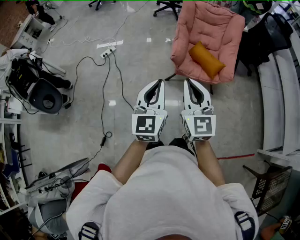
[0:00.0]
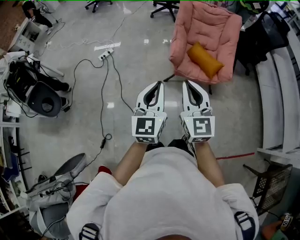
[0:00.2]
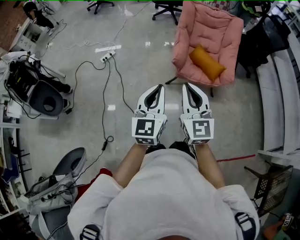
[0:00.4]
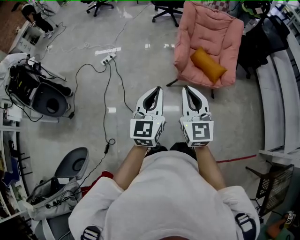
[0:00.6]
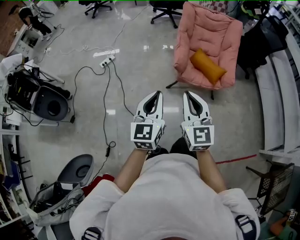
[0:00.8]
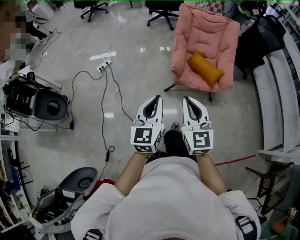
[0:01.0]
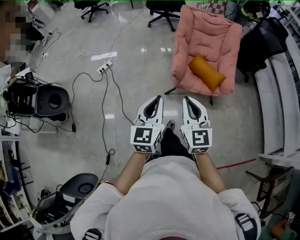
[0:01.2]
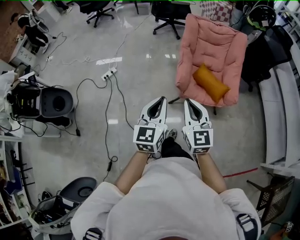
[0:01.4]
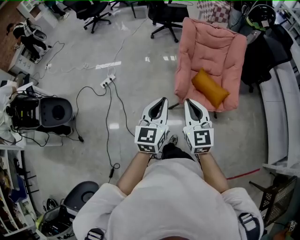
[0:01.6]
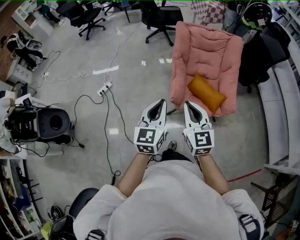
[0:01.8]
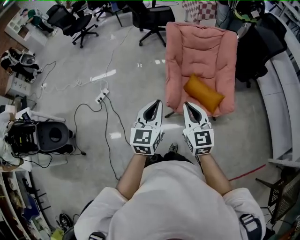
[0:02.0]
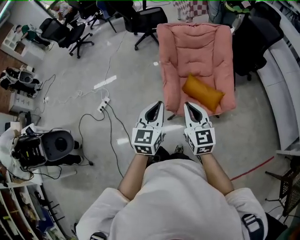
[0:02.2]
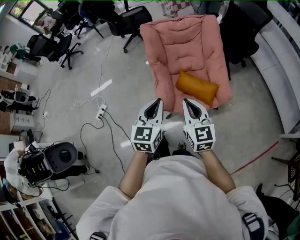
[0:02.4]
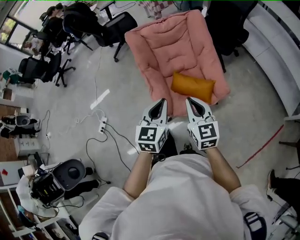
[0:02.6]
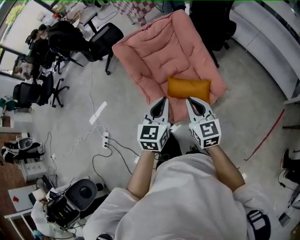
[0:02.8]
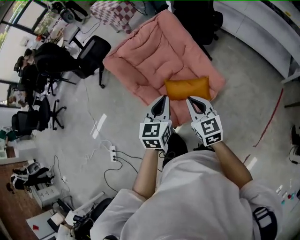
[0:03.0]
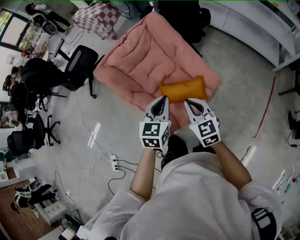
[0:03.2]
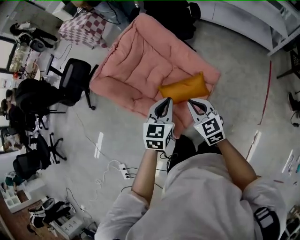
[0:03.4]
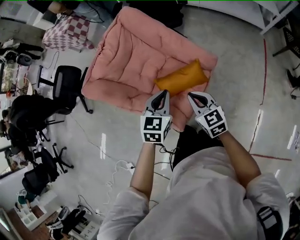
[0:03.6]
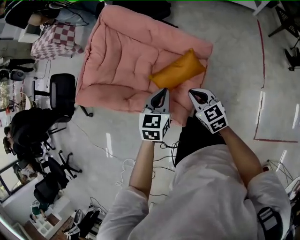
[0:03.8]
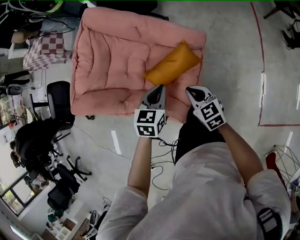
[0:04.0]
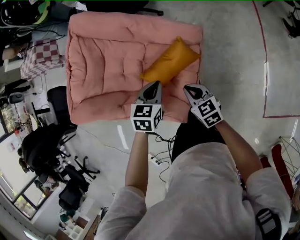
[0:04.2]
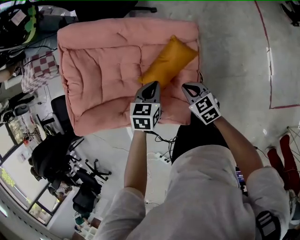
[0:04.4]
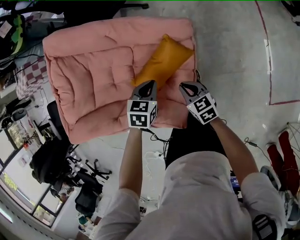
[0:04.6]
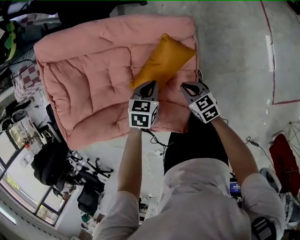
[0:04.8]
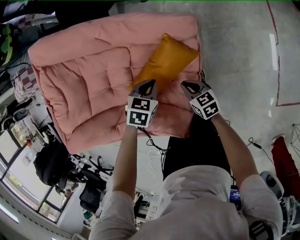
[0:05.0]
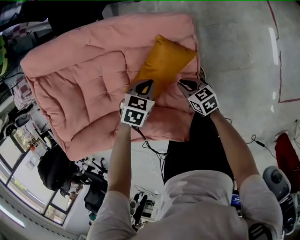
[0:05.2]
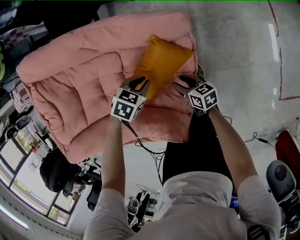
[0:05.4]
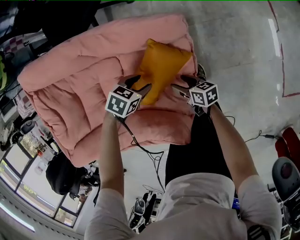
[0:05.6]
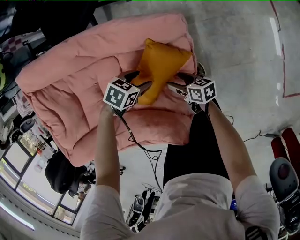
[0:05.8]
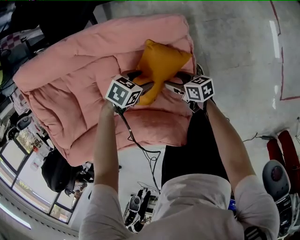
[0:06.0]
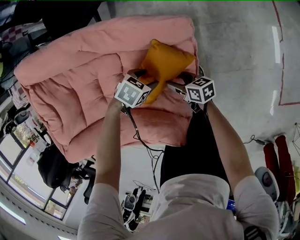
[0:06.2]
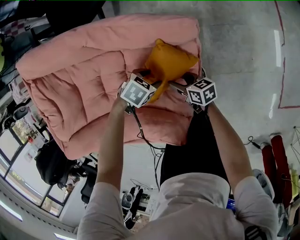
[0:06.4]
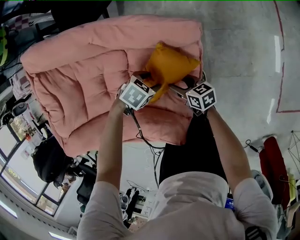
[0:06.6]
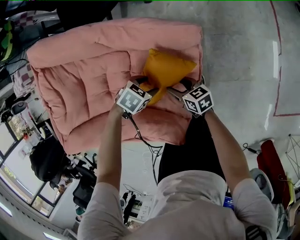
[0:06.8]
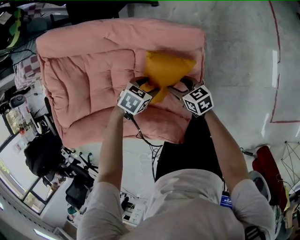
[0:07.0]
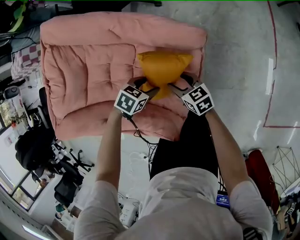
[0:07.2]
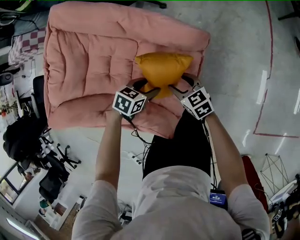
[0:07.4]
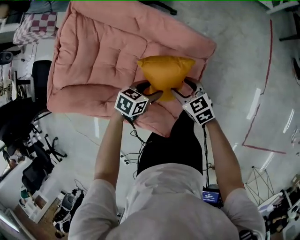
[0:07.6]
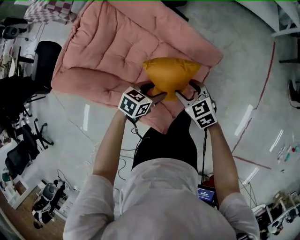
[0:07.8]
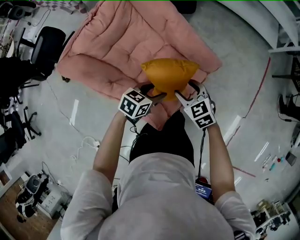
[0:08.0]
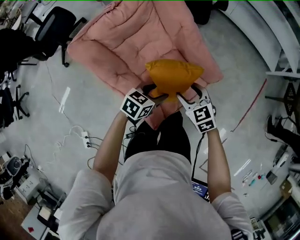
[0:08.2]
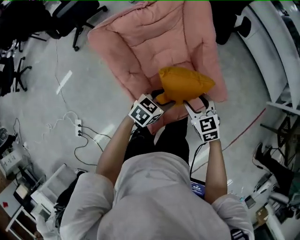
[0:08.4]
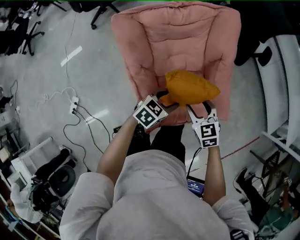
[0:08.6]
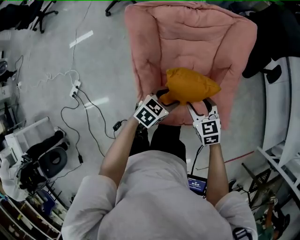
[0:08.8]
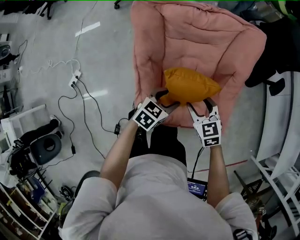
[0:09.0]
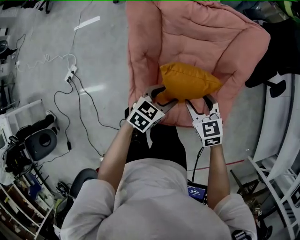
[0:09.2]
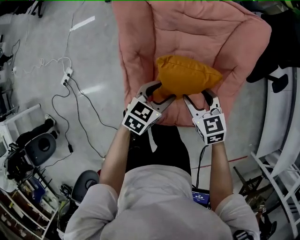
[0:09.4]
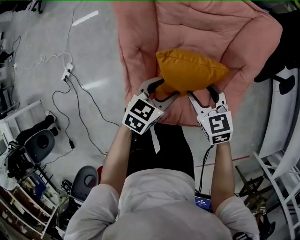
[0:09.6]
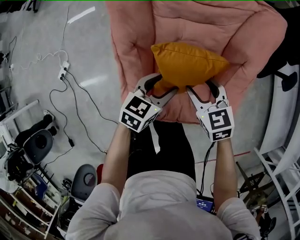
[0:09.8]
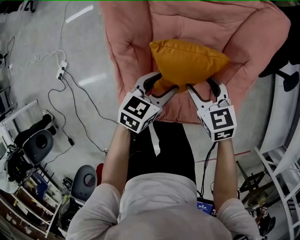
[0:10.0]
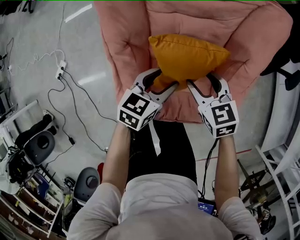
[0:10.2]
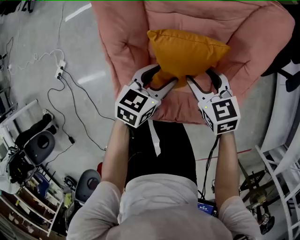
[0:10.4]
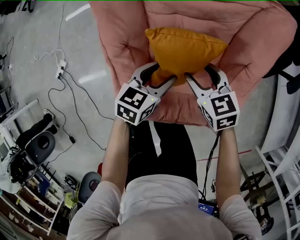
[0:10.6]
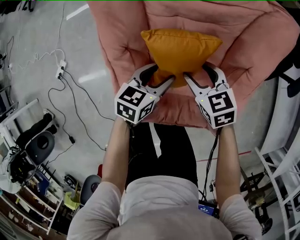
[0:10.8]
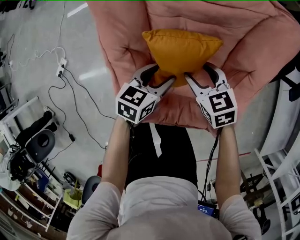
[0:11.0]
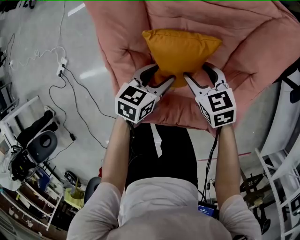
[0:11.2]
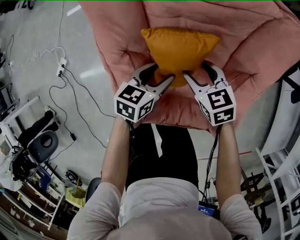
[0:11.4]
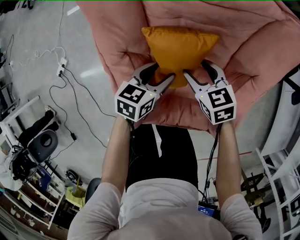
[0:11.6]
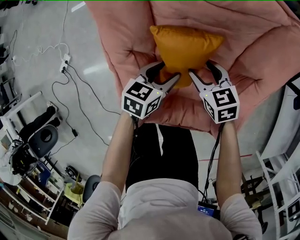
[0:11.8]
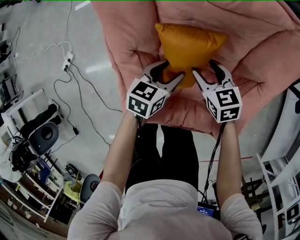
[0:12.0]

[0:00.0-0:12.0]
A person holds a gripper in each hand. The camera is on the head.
0.0 to 1.6 s: The two grippers go some 20 cm forward.
1.6 to 3.0 s: The right gripper changes place by about 30 cm, and swivels roughly 40 degrees. The left gripper shifts by approximately 35 cm, and turns by some 40 degrees.
3.0 to 4.4 s: The grippers both shift downward by some 25 cm. The right gripper swivels approximately 40 degrees; the left gripper angles its fingers downward, by about 30 degrees.
4.4 to 6.0 s: Both grippers travel together downward, roughly 20 cm. The right gripper rotates around the line of its fingers by approximately 40 degrees, clockwise from behind, and opens its fingers. Meanwhile the left gripper changes its angle by about 50 degrees, and opens.
6.0 to 7.6 s: The two grippers go about 15 cm upward. The right gripper twists some 60 degrees counterclockwise, seen from behind; the left gripper rotates approximately 40 degrees.
7.6 to 9.0 s: The right gripper changes place by some 20 cm, and changes its angle by some 60 degrees, while the left gripper moves about 15 cm, and rotates approximately 60 degrees.
9.0 to 10.4 s: The two grippers go about 10 cm downward and forward.
10.4 to 12.0 s: The left gripper travels downward by some 5 cm. Meanwhile the right gripper goes some 10 cm downward and forward.

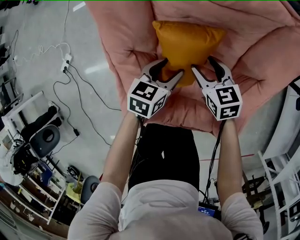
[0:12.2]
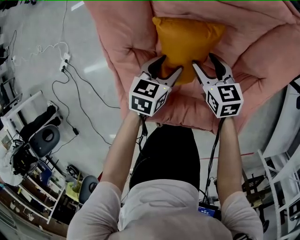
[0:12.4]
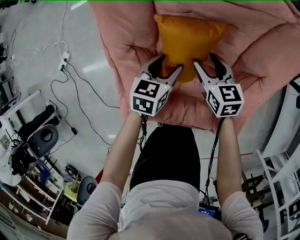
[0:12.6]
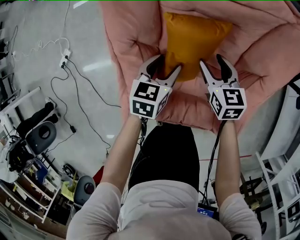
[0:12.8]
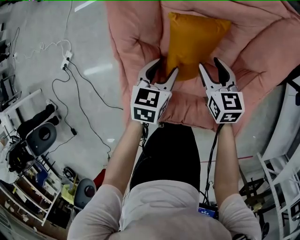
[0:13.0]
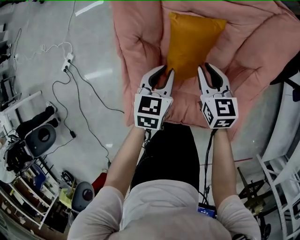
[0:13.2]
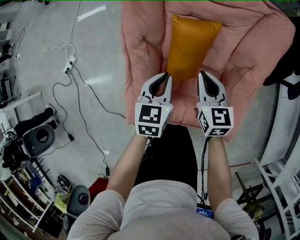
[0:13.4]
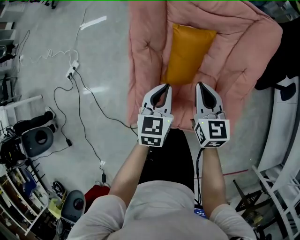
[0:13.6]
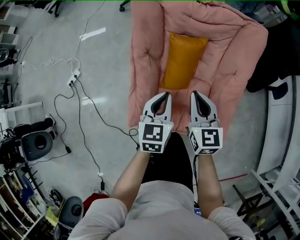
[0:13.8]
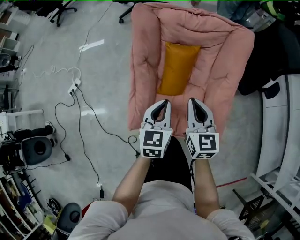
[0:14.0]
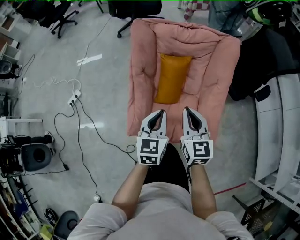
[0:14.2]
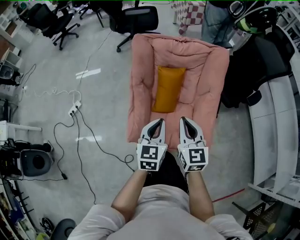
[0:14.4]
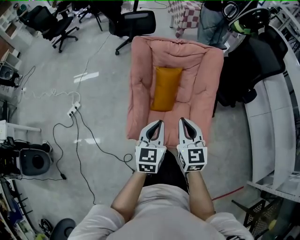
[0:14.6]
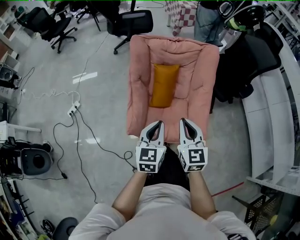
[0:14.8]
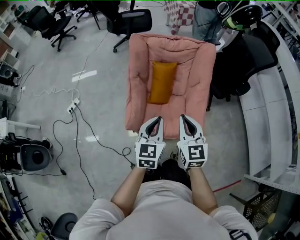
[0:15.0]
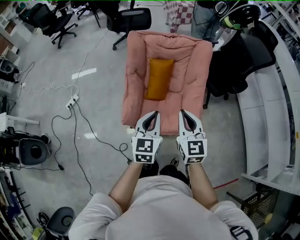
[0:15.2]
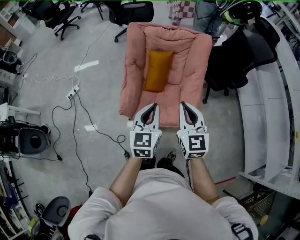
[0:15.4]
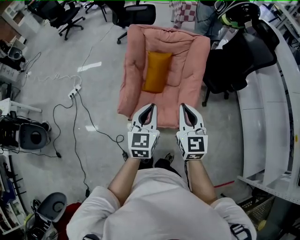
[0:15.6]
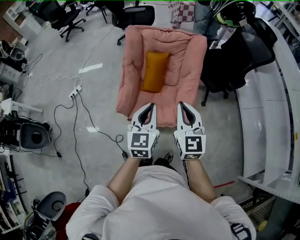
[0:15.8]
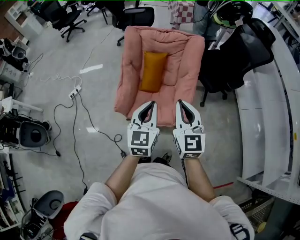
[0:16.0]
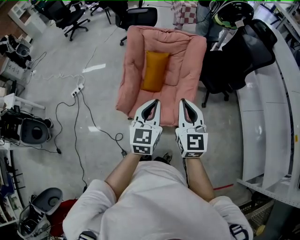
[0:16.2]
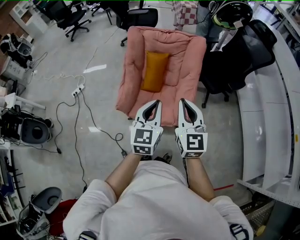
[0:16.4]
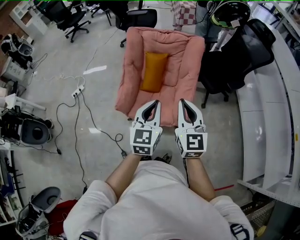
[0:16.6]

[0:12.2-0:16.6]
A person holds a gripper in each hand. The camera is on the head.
12.2 to 13.6 s: Both grippers travel together upward and backward, about 20 cm. The left gripper changes its angle by approximately 20 degrees, and closes up; the right gripper rotates some 20 degrees, and closes its fingers.
13.6 to 15.2 s: Both grippers travel together upward and backward, approximately 40 cm.
15.2 to 16.6 s: The grippers both shift to the right, backward and upward by roughly 15 cm.

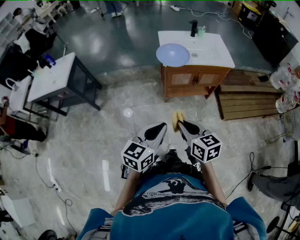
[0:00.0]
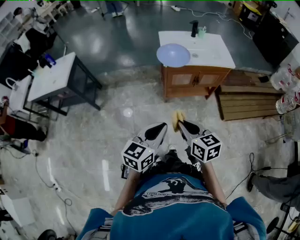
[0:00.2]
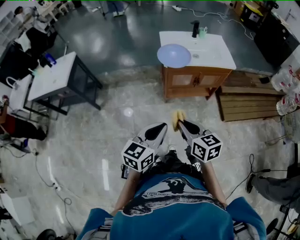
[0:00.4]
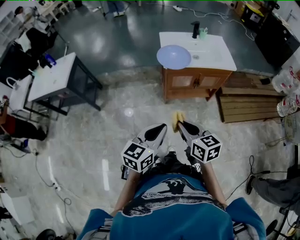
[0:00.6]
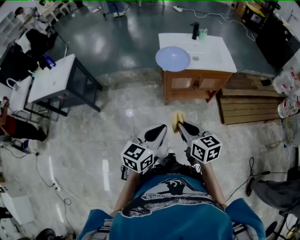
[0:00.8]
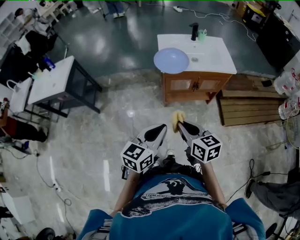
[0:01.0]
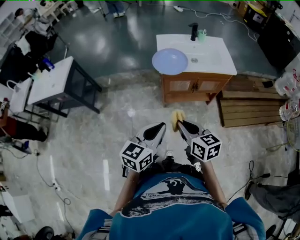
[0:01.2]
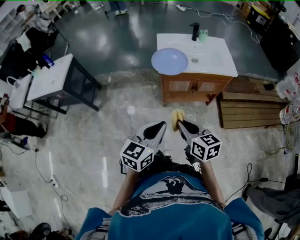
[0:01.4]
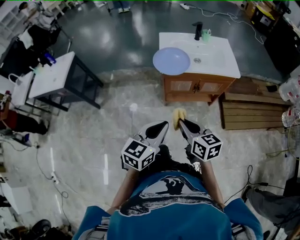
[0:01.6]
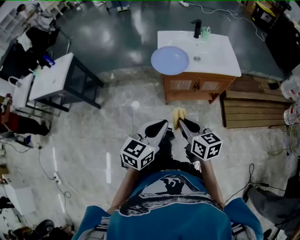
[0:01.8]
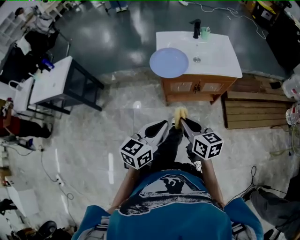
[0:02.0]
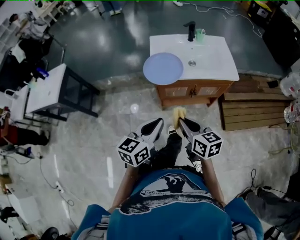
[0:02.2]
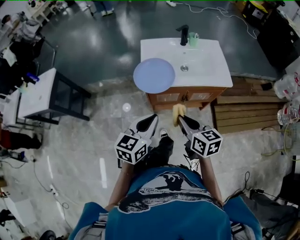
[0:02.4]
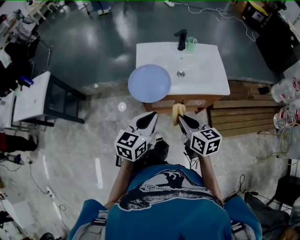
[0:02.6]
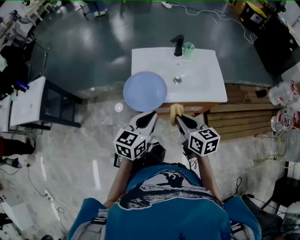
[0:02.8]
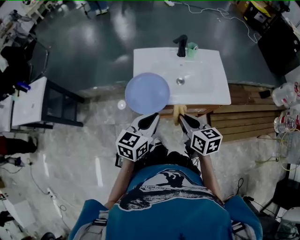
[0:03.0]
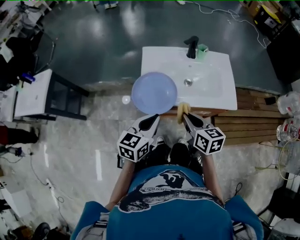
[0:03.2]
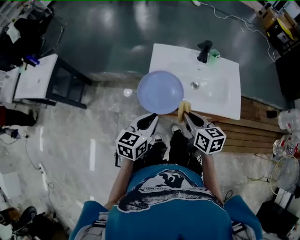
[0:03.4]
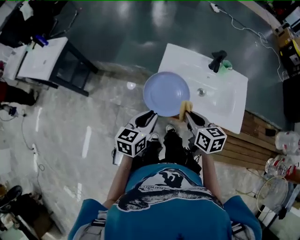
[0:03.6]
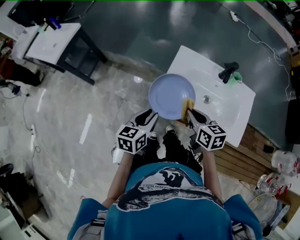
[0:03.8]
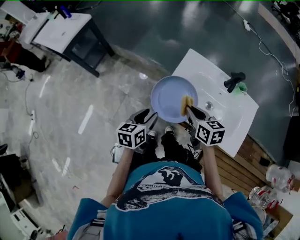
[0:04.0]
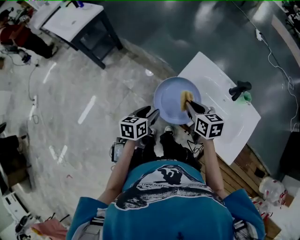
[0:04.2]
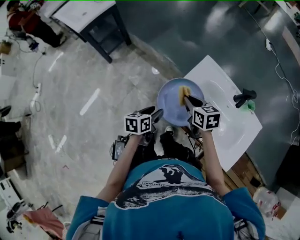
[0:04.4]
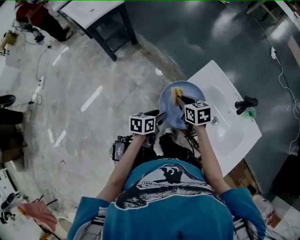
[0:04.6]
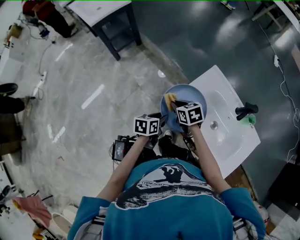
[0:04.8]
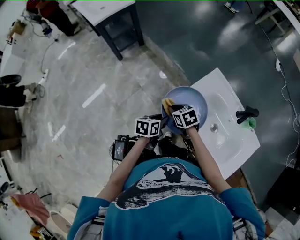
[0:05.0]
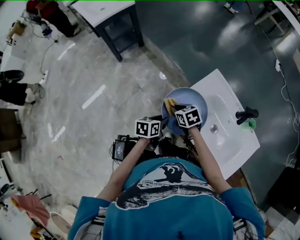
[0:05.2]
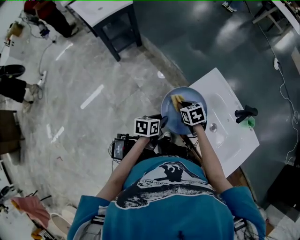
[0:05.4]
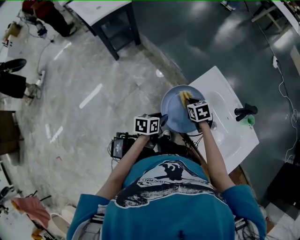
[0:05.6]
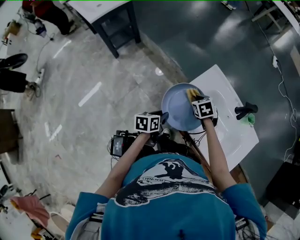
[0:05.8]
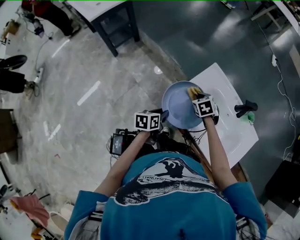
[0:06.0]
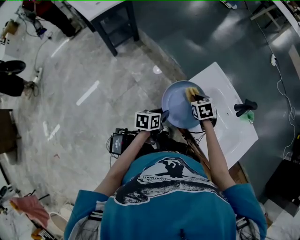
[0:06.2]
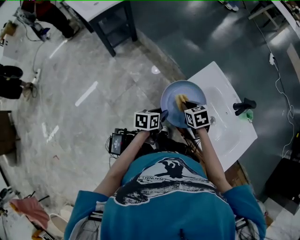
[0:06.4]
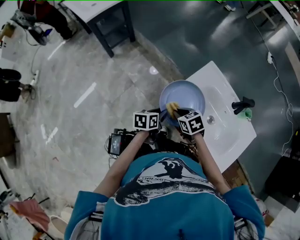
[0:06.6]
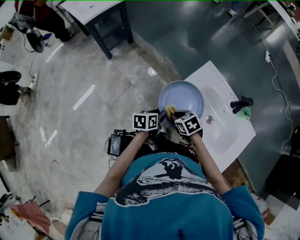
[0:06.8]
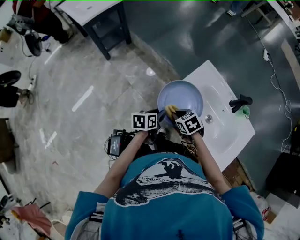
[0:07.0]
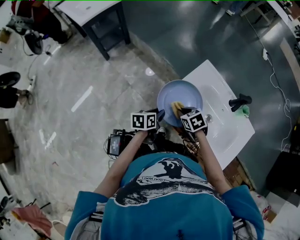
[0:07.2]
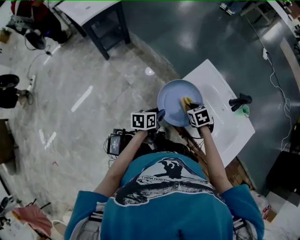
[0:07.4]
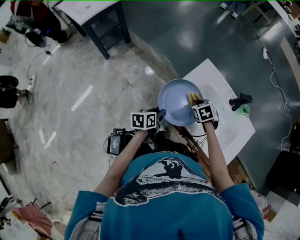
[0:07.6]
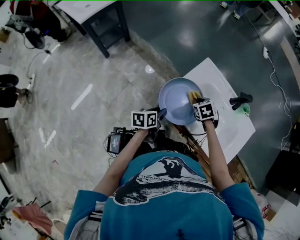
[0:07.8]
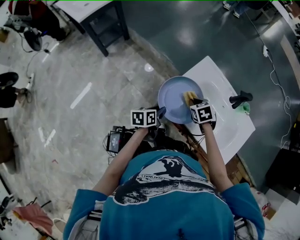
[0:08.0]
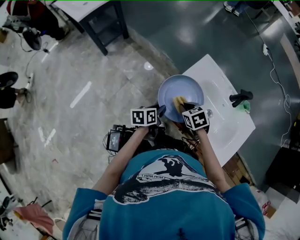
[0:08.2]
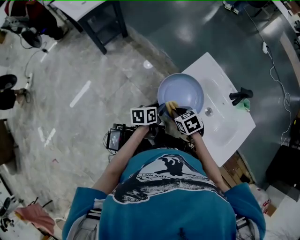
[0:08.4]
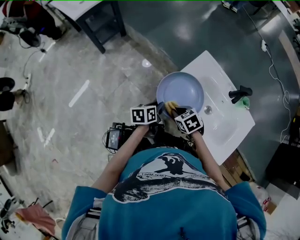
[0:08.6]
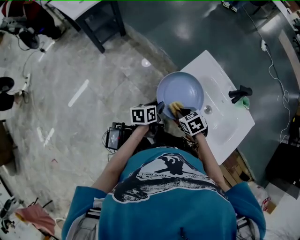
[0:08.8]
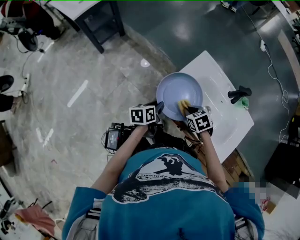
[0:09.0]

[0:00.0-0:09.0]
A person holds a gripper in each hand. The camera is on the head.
0.0 to 1.6 s: The two grippers go some 10 cm forward and to the right.
1.6 to 3.0 s: Both grippers move forward, approximately 30 cm.
3.0 to 4.4 s: The right gripper moves some 25 cm, and changes its angle by some 50 degrees. Meanwhile the left gripper shifts about 15 cm downward, swivels approximately 60 degrees, and opens up.
4.4 to 6.0 s: The right gripper heads downward, forward and to the right, covering roughly 10 cm, and turns by roughly 40 degrees.
6.0 to 7.6 s: The right gripper goes backward and returns, approximately 15 cm each way.
7.6 to 9.0 s: The right gripper goes roughly 10 cm backward.
